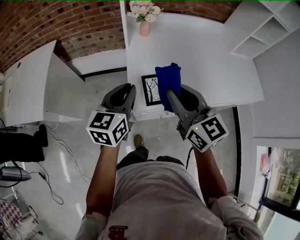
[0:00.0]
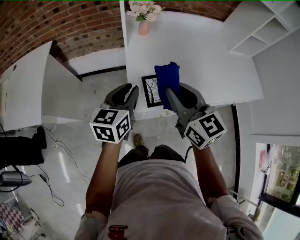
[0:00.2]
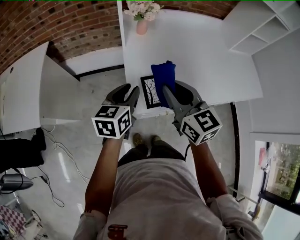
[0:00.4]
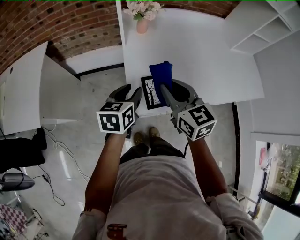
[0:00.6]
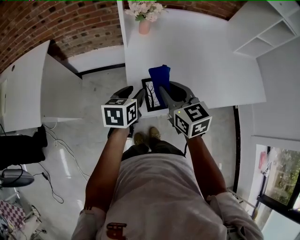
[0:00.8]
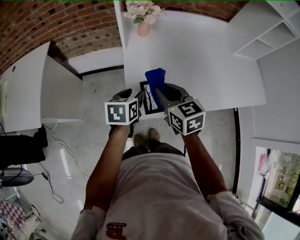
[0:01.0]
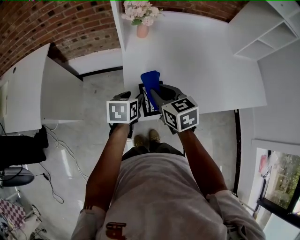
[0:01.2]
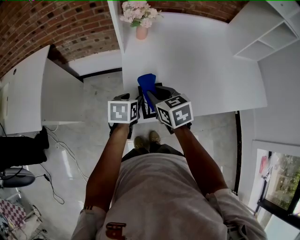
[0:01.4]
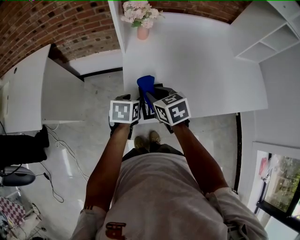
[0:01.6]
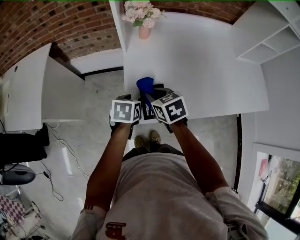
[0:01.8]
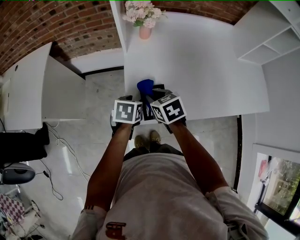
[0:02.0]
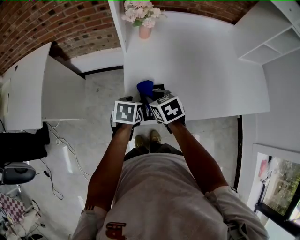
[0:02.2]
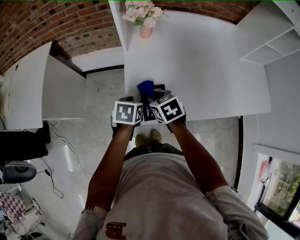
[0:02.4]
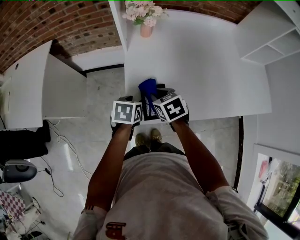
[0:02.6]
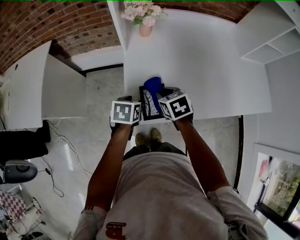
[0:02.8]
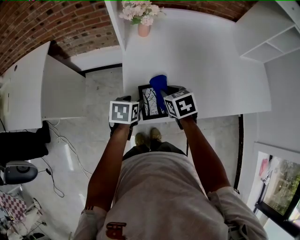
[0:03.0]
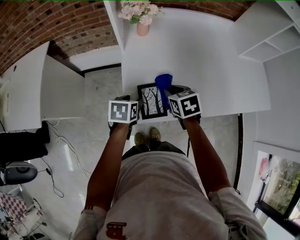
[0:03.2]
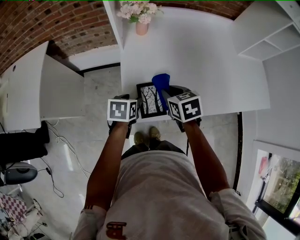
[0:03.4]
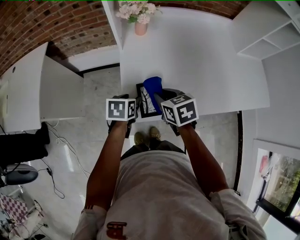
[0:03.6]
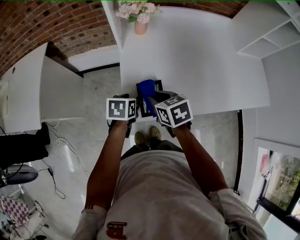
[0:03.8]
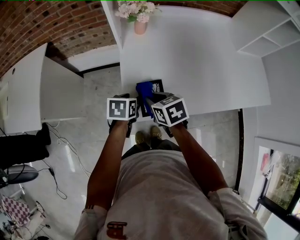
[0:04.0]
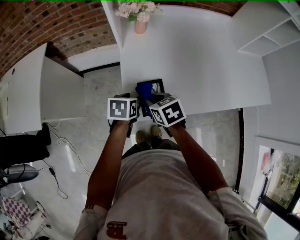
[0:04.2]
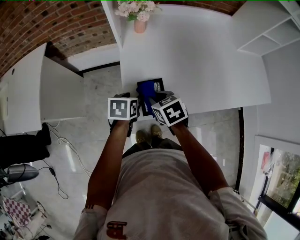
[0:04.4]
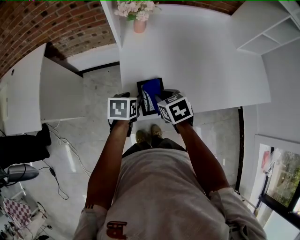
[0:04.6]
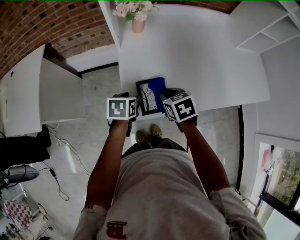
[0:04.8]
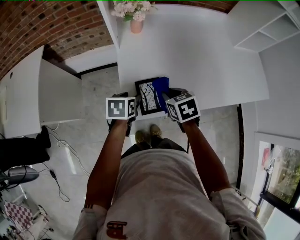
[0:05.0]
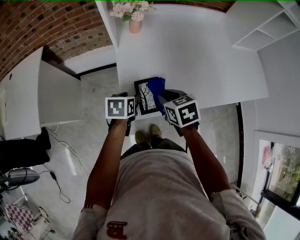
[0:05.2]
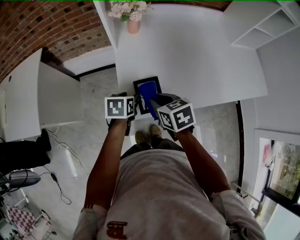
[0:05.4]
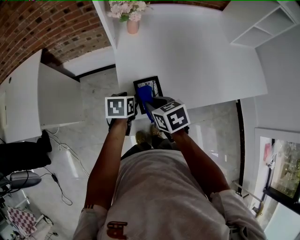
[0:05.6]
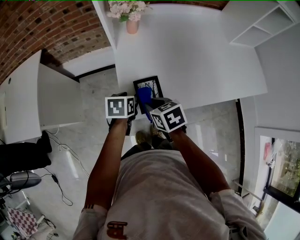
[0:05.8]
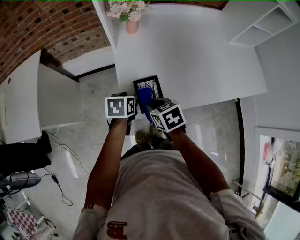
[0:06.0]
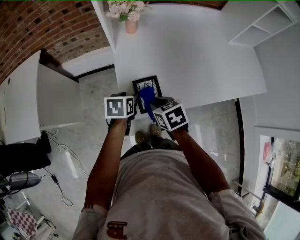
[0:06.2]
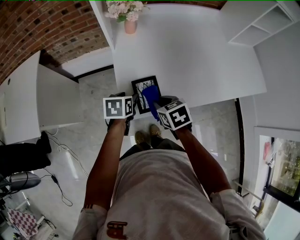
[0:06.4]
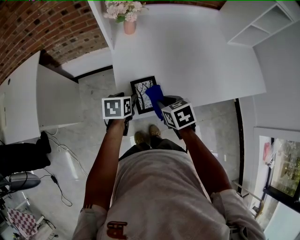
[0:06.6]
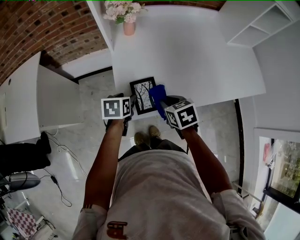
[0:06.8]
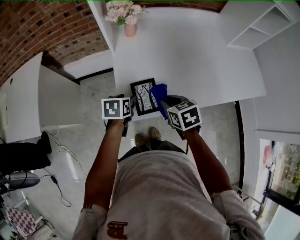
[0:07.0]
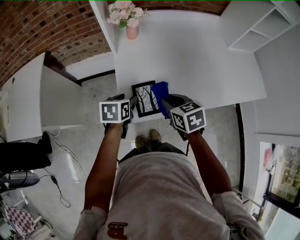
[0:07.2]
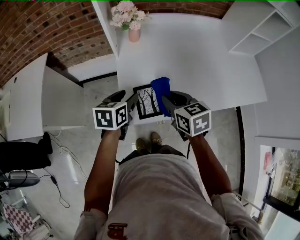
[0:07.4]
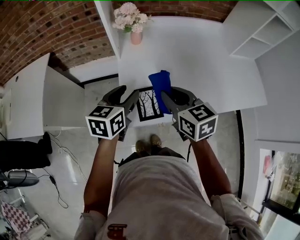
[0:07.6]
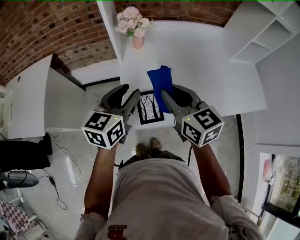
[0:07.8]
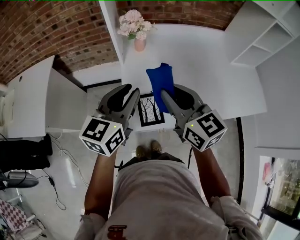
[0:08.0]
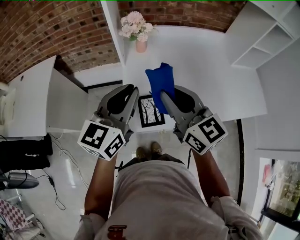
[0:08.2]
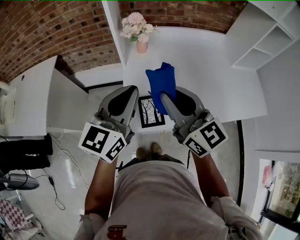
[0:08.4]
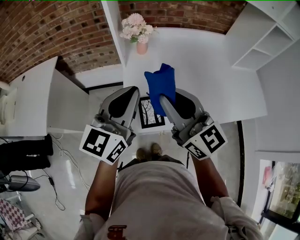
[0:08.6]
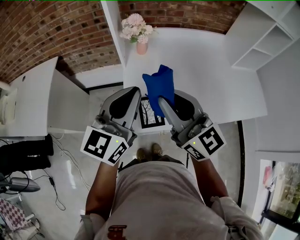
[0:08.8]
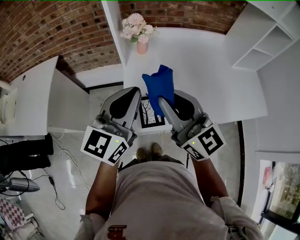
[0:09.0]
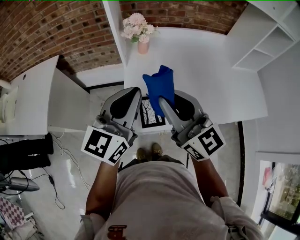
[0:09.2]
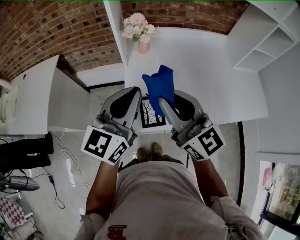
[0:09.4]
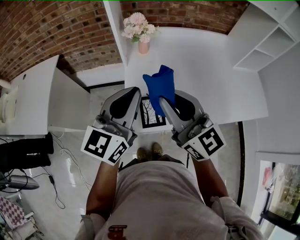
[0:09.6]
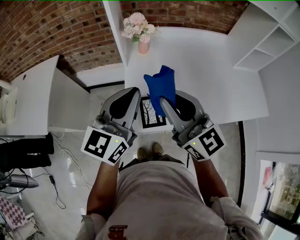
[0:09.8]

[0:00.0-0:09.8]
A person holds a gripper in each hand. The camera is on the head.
0:00.0 to 0:01.4: The grippers both shift downward and forward by some 20 cm. The left gripper tilts its fingers roughly 30 degrees downward, and opens. Meanwhile the right gripper angles its fingers downward, by some 30 degrees.
0:01.4 to 0:02.8: The right gripper heads downward, covering some 5 cm.
0:02.8 to 0:04.2: The right gripper changes place by roughly 5 cm.
0:04.2 to 0:05.6: The right gripper goes to the right and returns, roughly 10 cm each way.
0:05.6 to 0:07.0: The right gripper travels to the right by approximately 10 cm.
0:07.0 to 0:08.4: The grippers both shift upward by about 30 cm. The right gripper tips its fingers upward by approximately 50 degrees. Meanwhile the left gripper angles its fingers upward, by about 50 degrees, and closes its fingers.
0:08.4 to 0:09.8: The grippers move only a little.

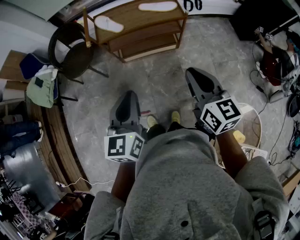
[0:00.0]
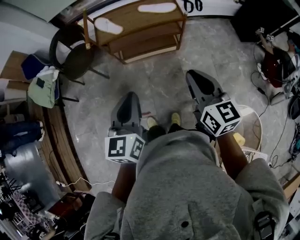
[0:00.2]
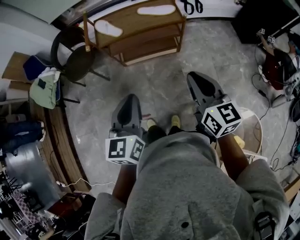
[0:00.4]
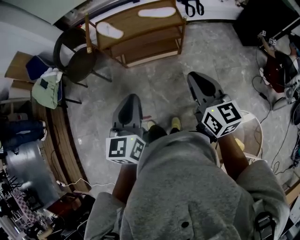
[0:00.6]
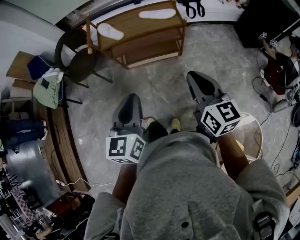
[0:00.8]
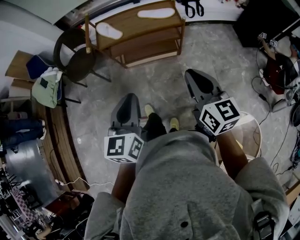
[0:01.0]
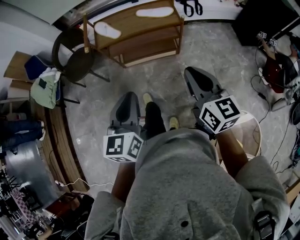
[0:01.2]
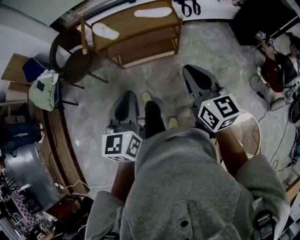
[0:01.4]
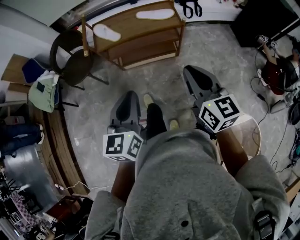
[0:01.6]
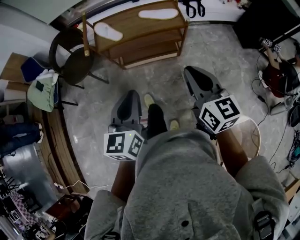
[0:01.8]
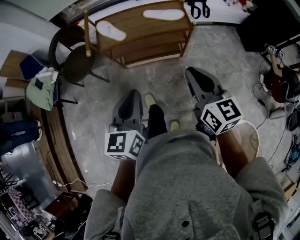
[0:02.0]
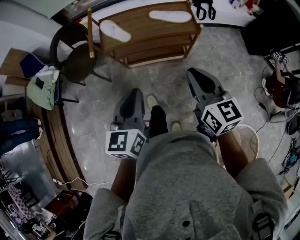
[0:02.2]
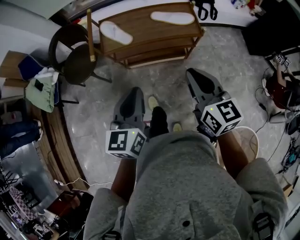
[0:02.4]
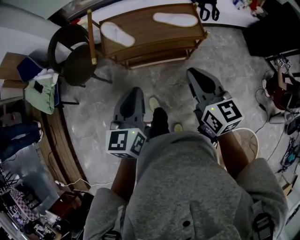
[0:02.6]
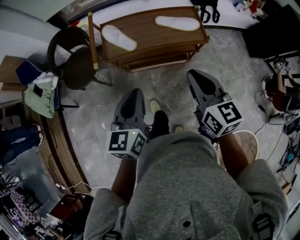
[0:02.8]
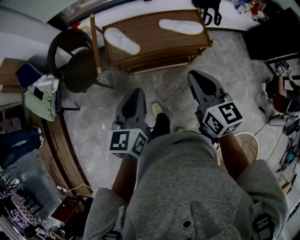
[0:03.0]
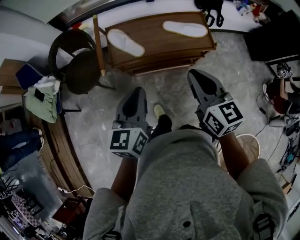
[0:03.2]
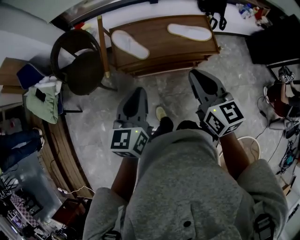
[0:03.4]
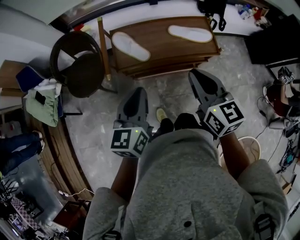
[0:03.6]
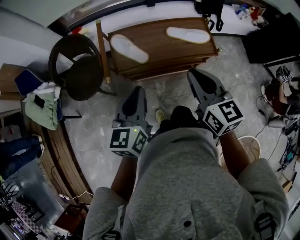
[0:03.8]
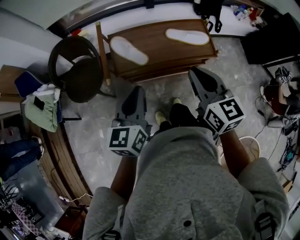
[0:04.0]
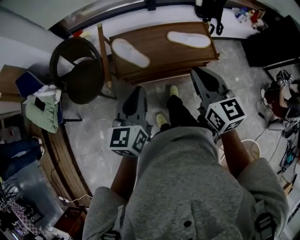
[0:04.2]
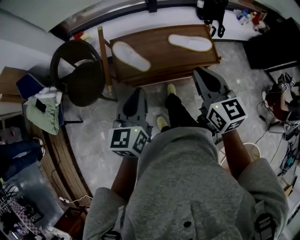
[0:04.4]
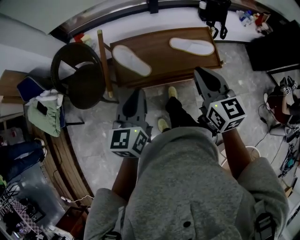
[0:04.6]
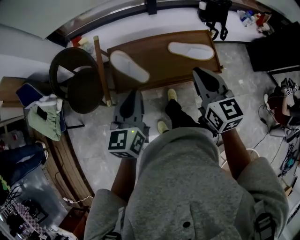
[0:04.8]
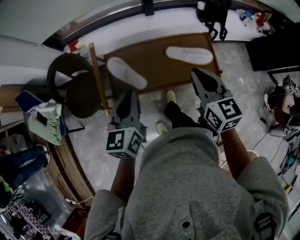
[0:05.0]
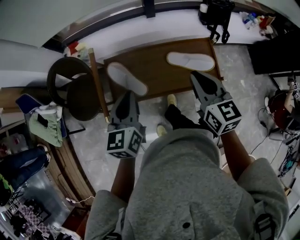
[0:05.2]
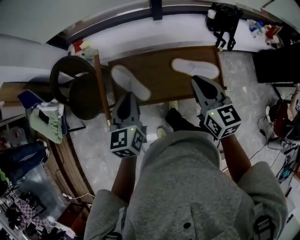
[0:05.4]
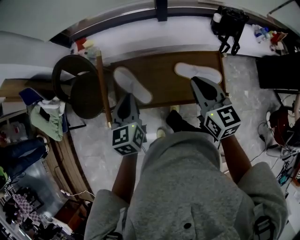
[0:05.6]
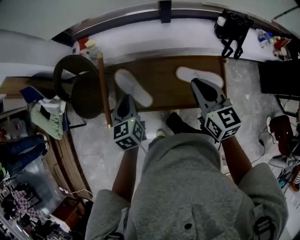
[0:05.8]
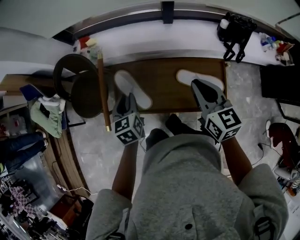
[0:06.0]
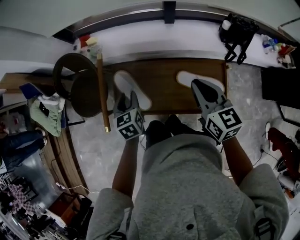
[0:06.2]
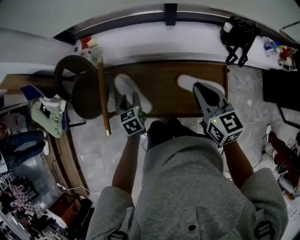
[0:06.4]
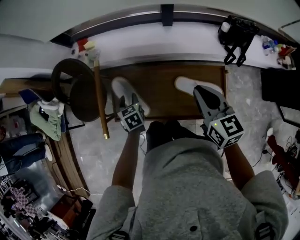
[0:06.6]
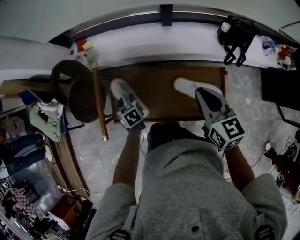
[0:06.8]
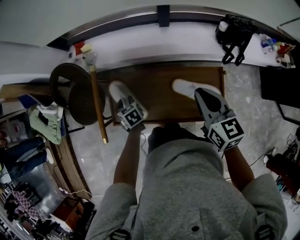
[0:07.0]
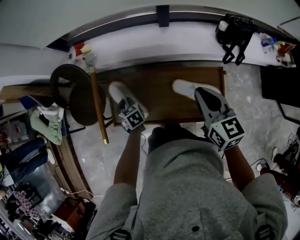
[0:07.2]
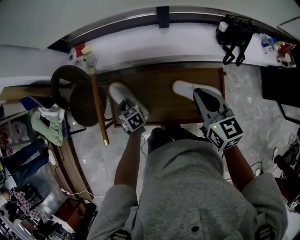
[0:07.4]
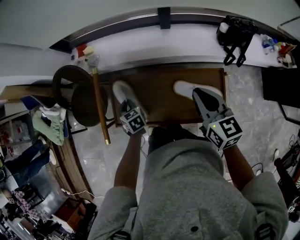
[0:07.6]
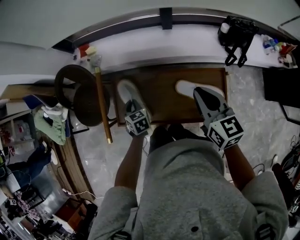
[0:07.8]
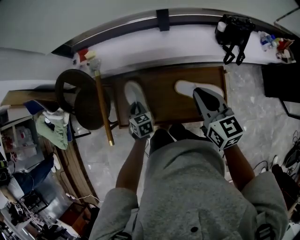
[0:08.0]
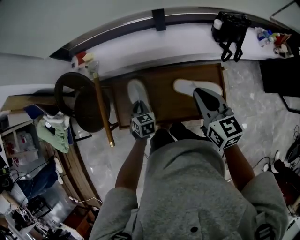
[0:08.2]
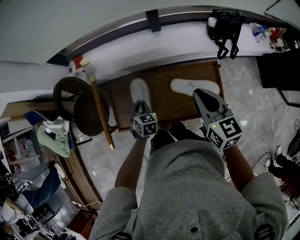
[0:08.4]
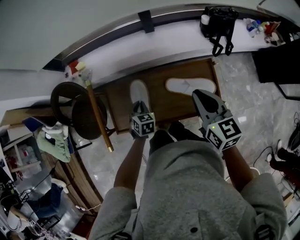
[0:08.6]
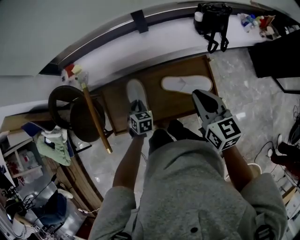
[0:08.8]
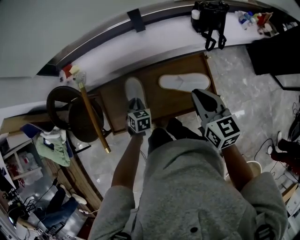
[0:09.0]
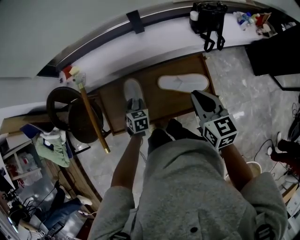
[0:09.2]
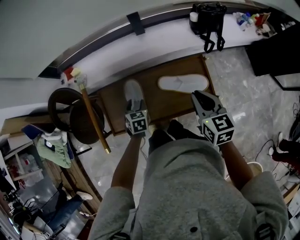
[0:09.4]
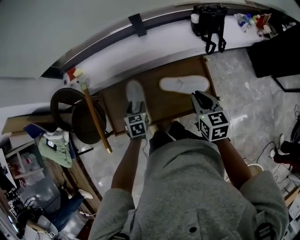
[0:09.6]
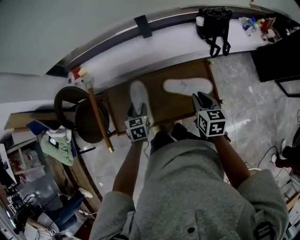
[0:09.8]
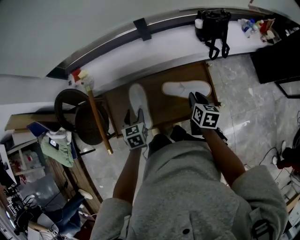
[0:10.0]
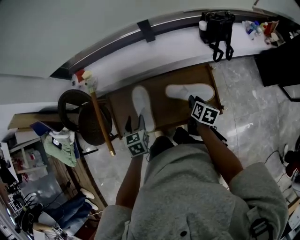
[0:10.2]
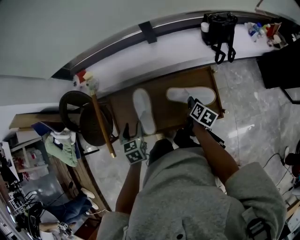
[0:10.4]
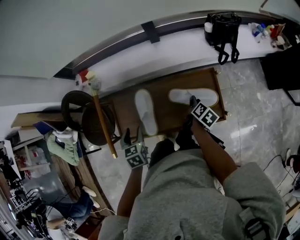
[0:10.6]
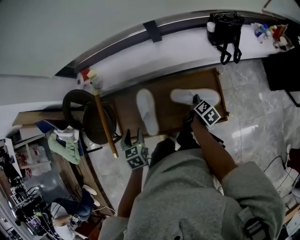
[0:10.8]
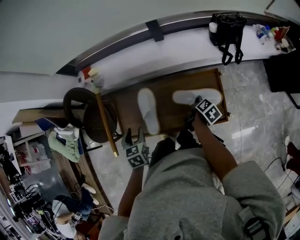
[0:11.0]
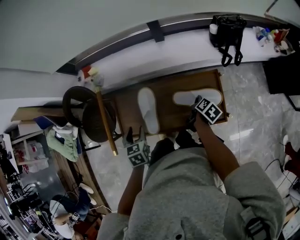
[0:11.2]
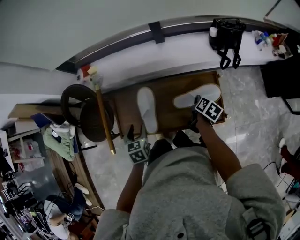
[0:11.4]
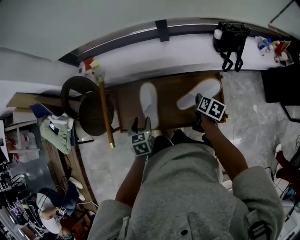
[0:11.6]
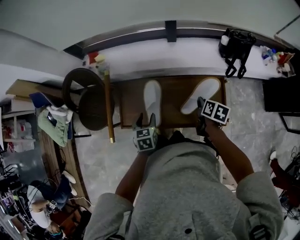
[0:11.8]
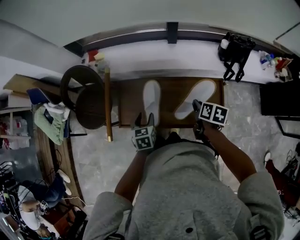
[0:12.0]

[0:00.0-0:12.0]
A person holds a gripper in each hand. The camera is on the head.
0:00.0 to 0:01.6: The grippers both shift to the right by approximately 5 cm.
0:01.6 to 0:03.0: The left gripper heads forward, covering approximately 25 cm; the right gripper moves forward and to the left, some 25 cm.
0:03.0 to 0:04.4: The grippers both shift forward by roughly 10 cm.
0:04.4 to 0:06.0: The right gripper is displaced forward by approximately 25 cm. Meanwhile the left gripper moves forward and downward, about 30 cm, and swivels about 30 degrees.
0:06.0 to 0:07.6: The right gripper shifts by about 5 cm. The left gripper moves downward, some 15 cm, turns by some 20 degrees, and opens, then closes once more.
0:07.6 to 0:09.0: The left gripper is displaced to the right by approximately 10 cm, and swivels some 30 degrees. The right gripper heads backward, covering approximately 10 cm.
0:09.0 to 0:10.4: The right gripper heads downward, covering about 20 cm, and rolls clockwise, seen from behind, by approximately 40 degrees. The left gripper travels upward and backward by some 10 cm, and opens.
0:10.4 to 0:12.0: The right gripper travels upward and to the left by roughly 10 cm, and changes its angle by approximately 30 degrees.

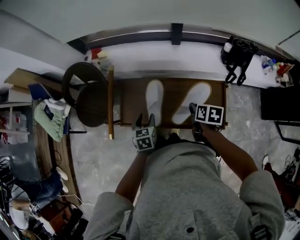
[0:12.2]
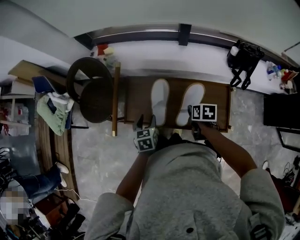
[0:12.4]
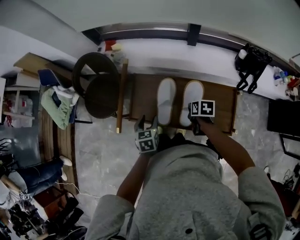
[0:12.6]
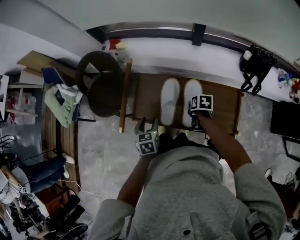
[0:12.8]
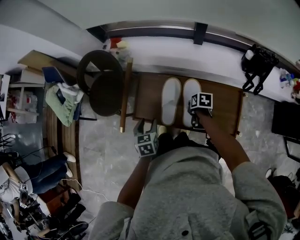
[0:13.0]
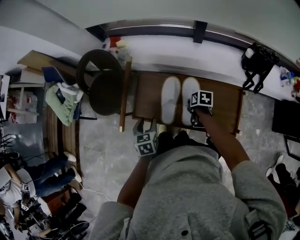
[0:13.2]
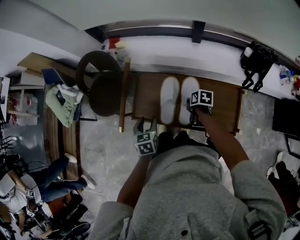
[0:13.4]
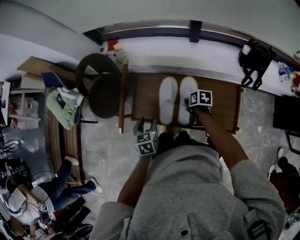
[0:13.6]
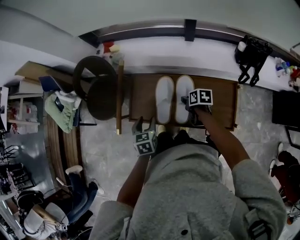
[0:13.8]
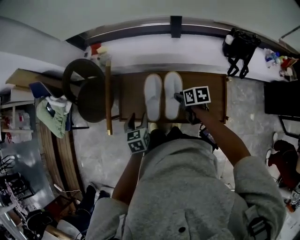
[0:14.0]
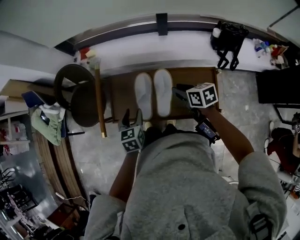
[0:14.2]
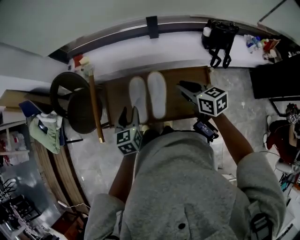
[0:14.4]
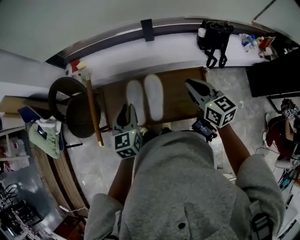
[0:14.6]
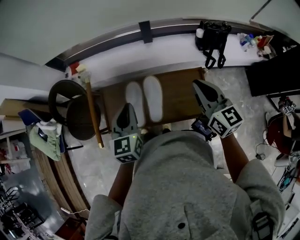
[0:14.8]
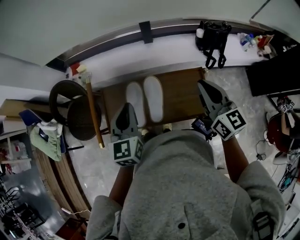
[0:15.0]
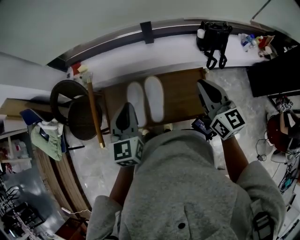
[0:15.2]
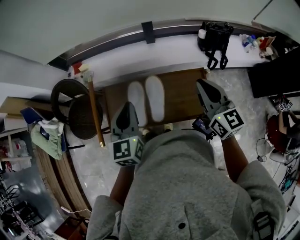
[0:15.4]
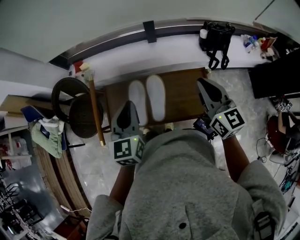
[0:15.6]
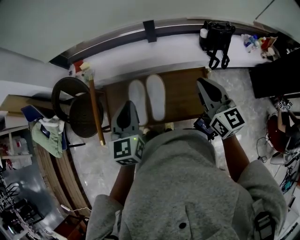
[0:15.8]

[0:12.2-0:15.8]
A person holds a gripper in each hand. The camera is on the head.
0:12.2 to 0:14.0: The right gripper shifts roughly 10 cm forward and downward.
0:14.0 to 0:15.8: The two grippers go approximately 25 cm upward. The left gripper rotates about 30 degrees, and closes up. The right gripper tips its fingers upward by about 40 degrees, and closes its fingers.
